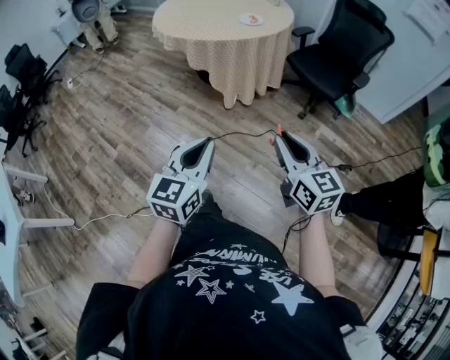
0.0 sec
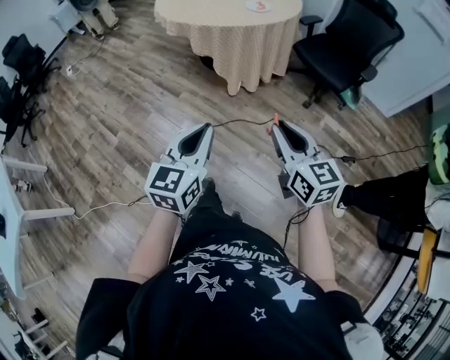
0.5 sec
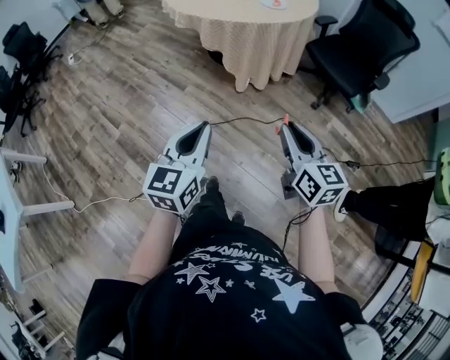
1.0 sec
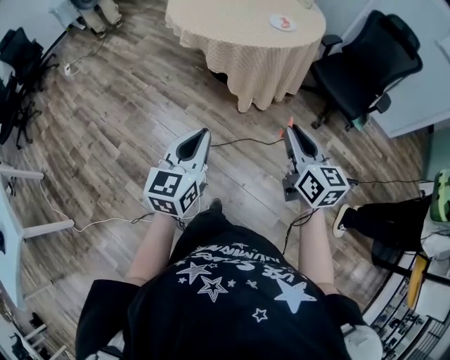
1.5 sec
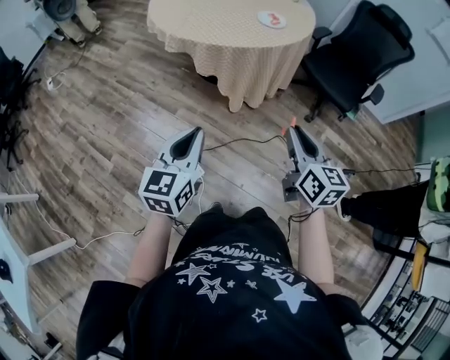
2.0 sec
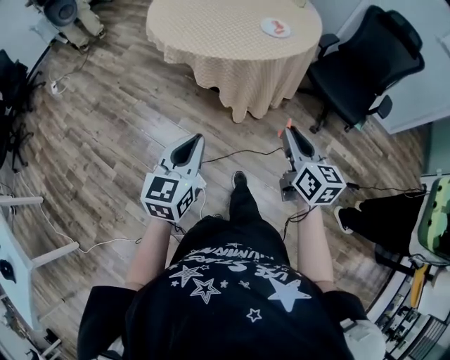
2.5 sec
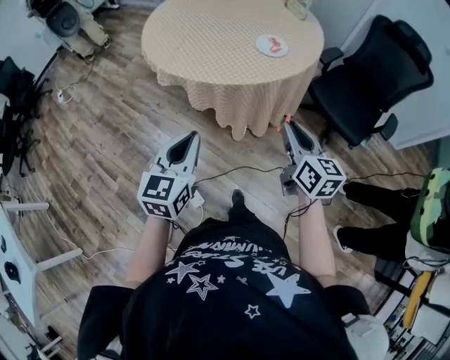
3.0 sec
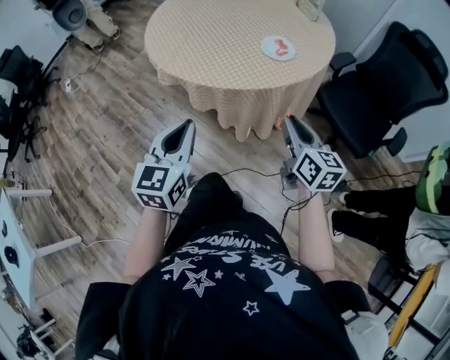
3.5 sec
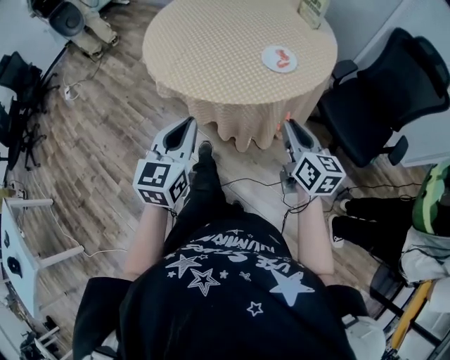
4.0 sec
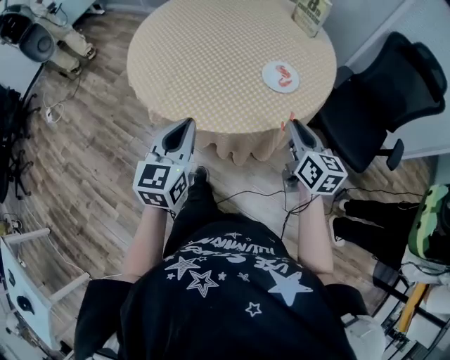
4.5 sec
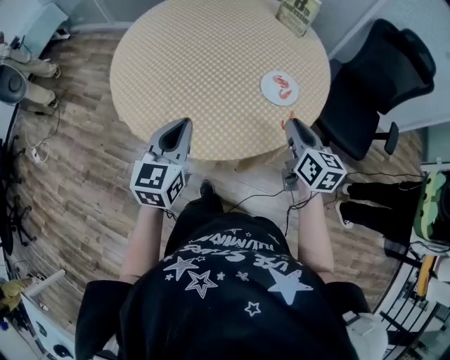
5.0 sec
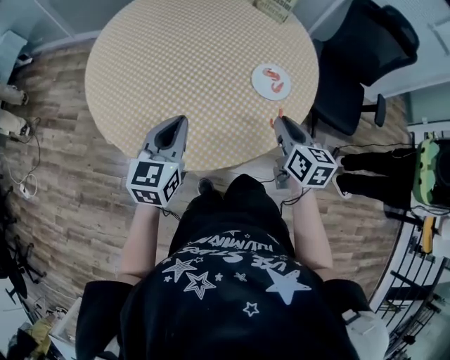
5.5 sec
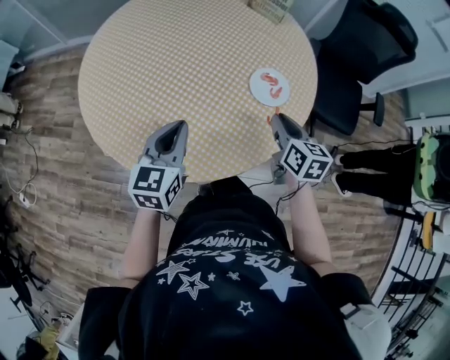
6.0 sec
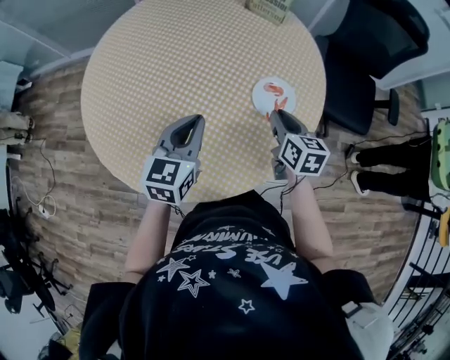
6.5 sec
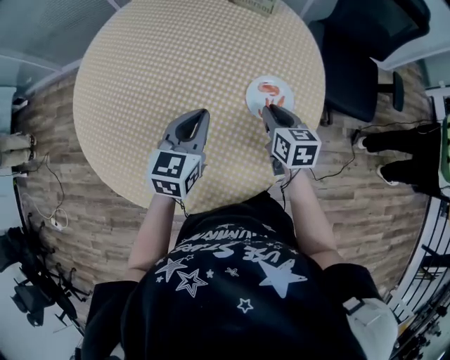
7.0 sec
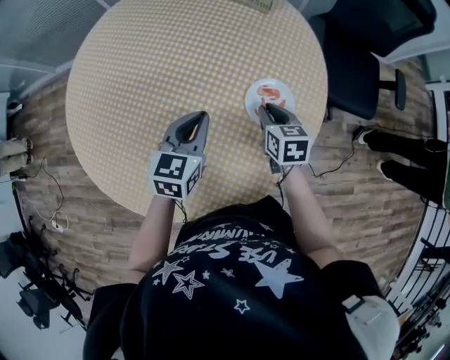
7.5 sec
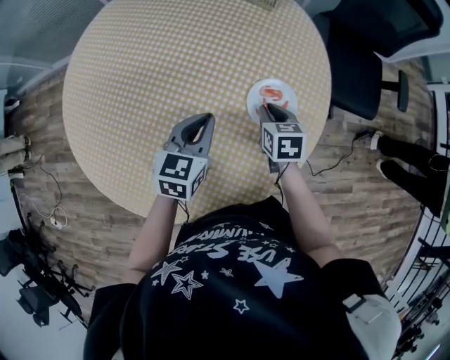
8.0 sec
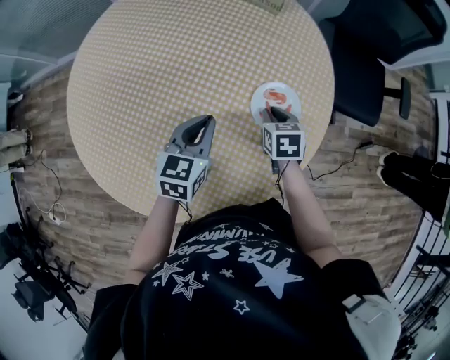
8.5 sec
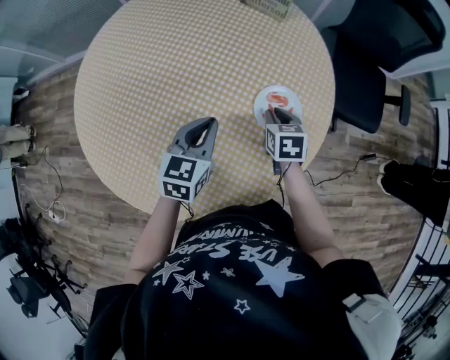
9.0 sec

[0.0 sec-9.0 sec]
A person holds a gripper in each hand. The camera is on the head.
0.0 sec to 2.0 sec: The grippers both shift forward and to the left by roughly 25 cm.
2.0 sec to 4.5 sec: The pair of grippers is taken forward, some 40 cm.
4.5 sec to 7.0 sec: The left gripper moves about 35 cm, and swivels approximately 40 degrees. Meanwhile the right gripper shifts by about 25 cm, and changes its angle by about 30 degrees.
7.0 sec to 9.0 sec: The right gripper shifts by roughly 5 cm.

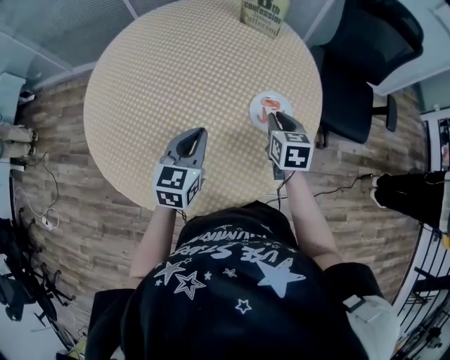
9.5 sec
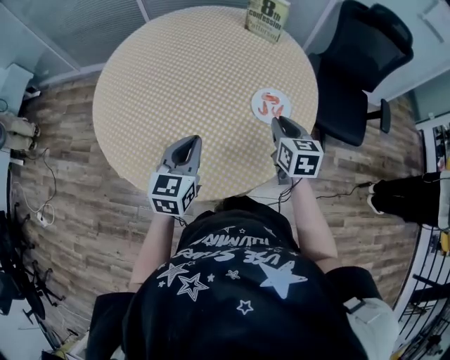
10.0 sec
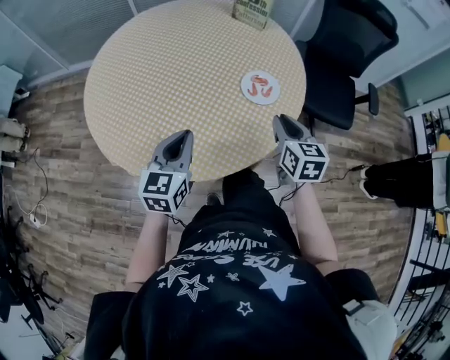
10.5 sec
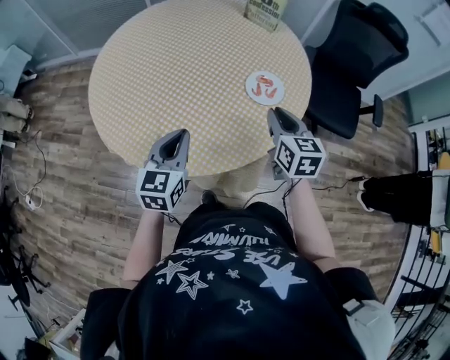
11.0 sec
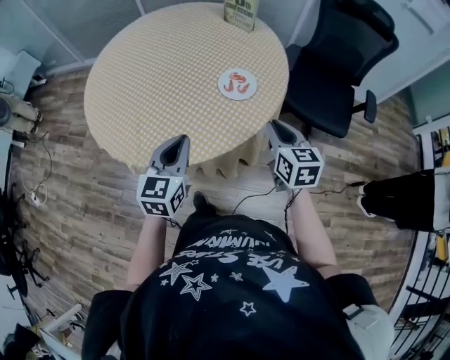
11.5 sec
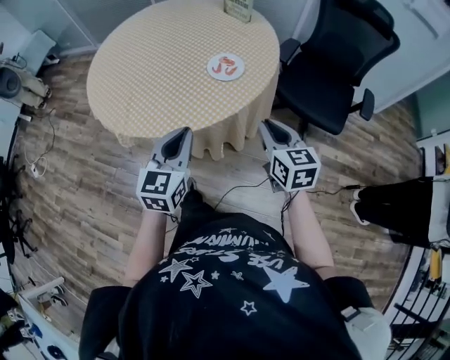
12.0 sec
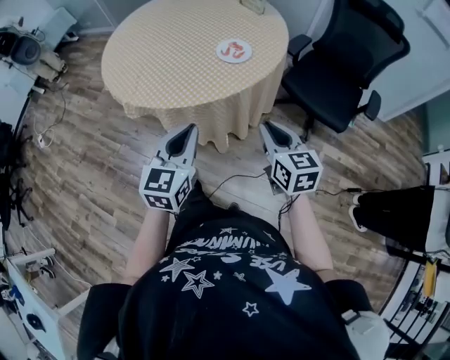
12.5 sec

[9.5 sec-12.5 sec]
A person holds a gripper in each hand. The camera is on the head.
9.5 sec to 11.0 sec: The left gripper heads backward, covering approximately 15 cm; the right gripper goes some 15 cm backward and upward.
11.0 sec to 12.5 sec: Both grippers travel together backward and to the right, about 30 cm. The right gripper swivels roughly 20 degrees.

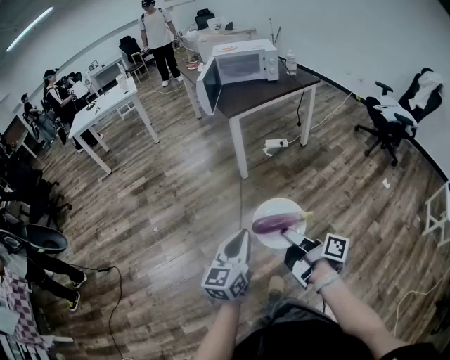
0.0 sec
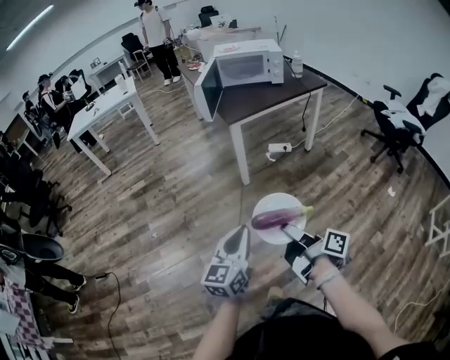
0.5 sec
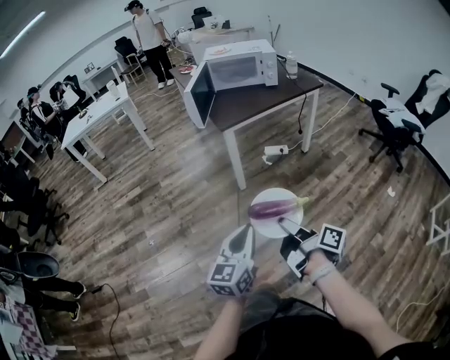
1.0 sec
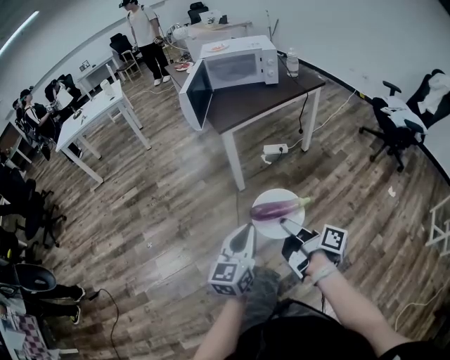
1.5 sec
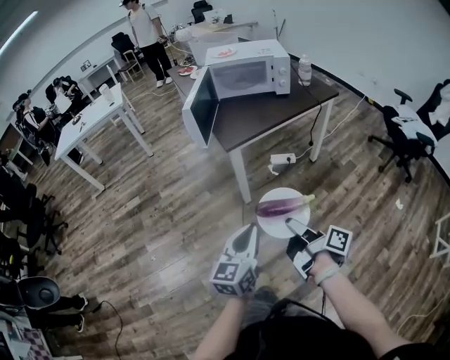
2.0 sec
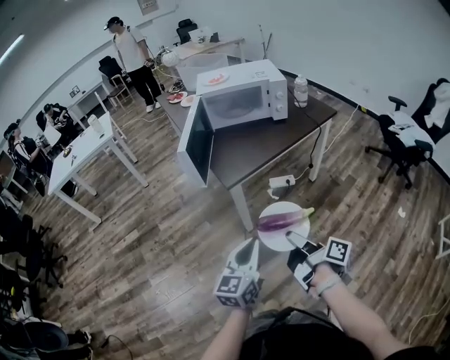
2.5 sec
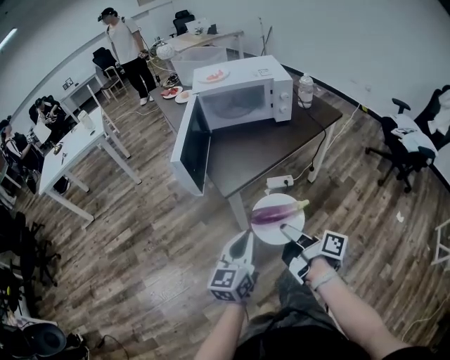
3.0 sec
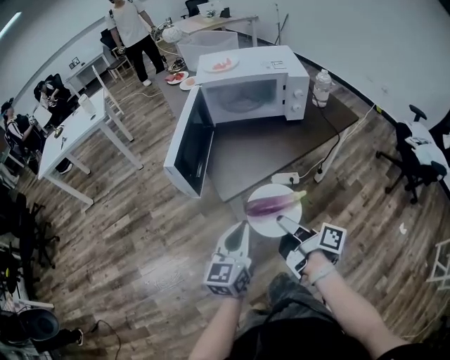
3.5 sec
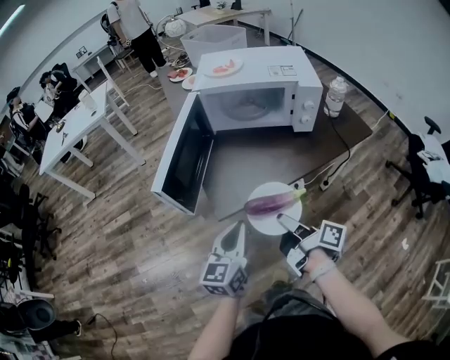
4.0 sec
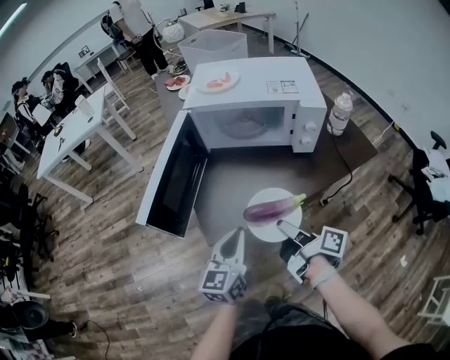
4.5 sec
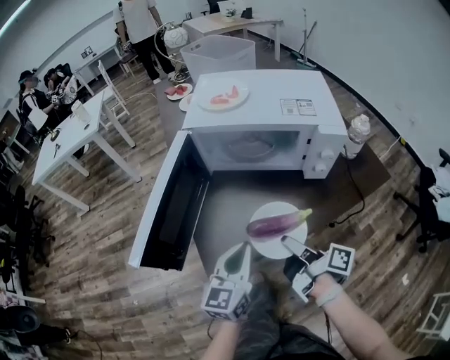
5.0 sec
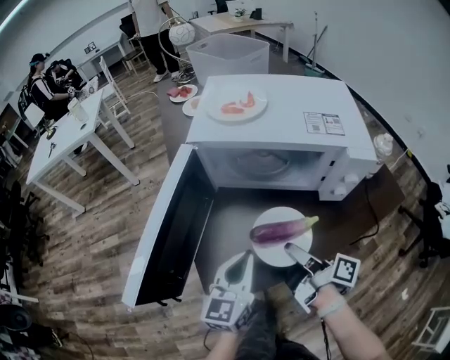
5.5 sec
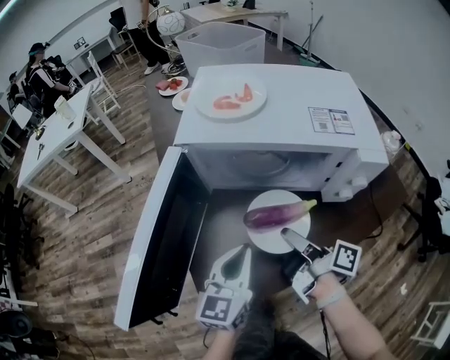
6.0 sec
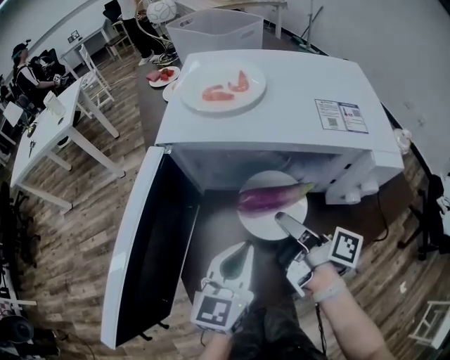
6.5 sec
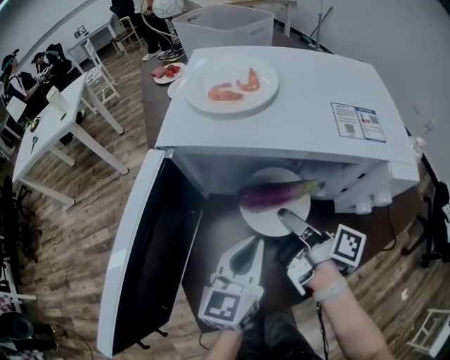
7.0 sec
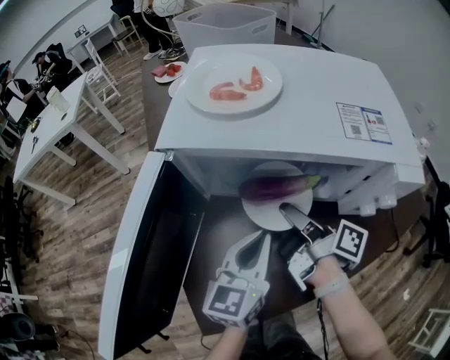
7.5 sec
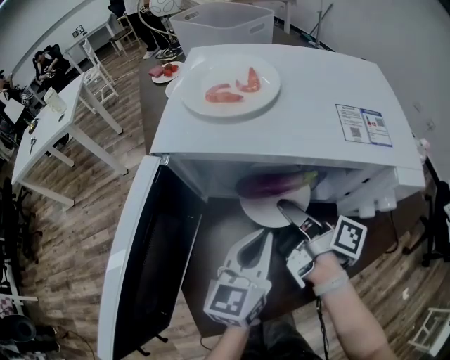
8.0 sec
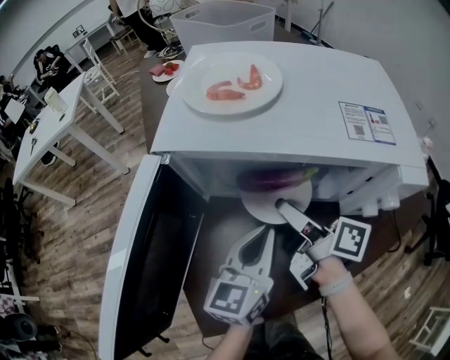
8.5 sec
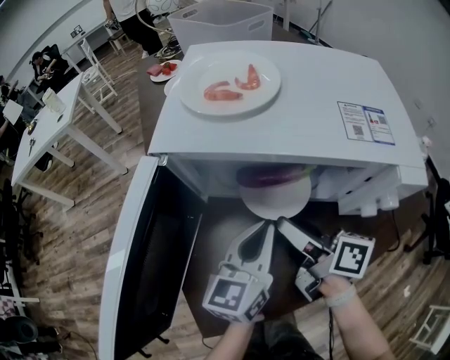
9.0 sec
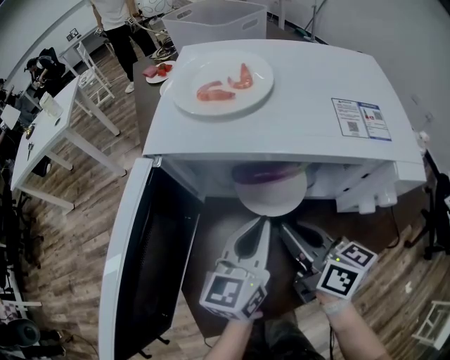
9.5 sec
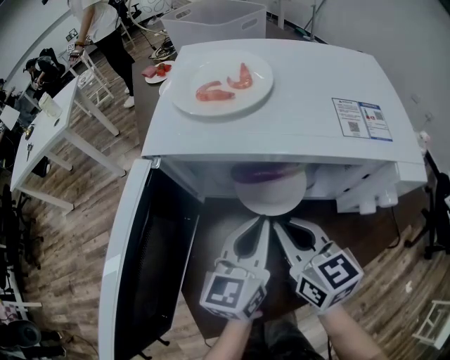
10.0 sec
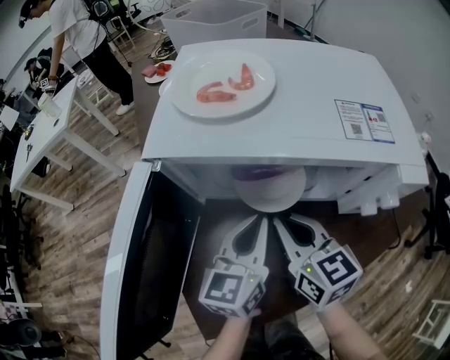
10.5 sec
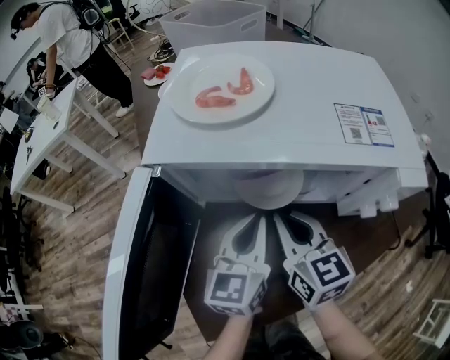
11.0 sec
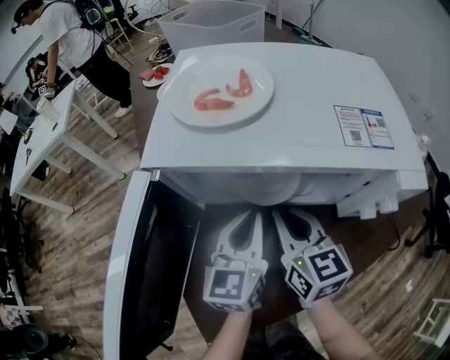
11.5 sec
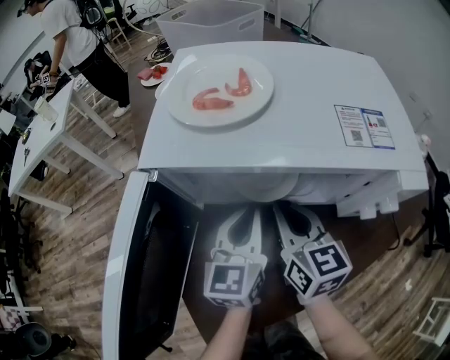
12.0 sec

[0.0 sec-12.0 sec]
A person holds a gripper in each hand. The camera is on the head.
0.0 sec to 2.0 sec: Both grippers move forward, roughly 35 cm.
2.0 sec to 4.0 sec: The grippers both shift forward by approximately 35 cm.
4.0 sec to 6.0 sec: The two grippers go some 25 cm forward.
6.0 sec to 8.0 sec: The left gripper travels forward and to the right by approximately 10 cm. Meanwhile the right gripper moves forward, approximately 10 cm.
8.0 sec to 10.0 sec: The right gripper twists about 70 degrees counterclockwise, seen from behind, and opens, then closes again.
10.0 sec to 12.0 sec: The right gripper shifts by roughly 5 cm.

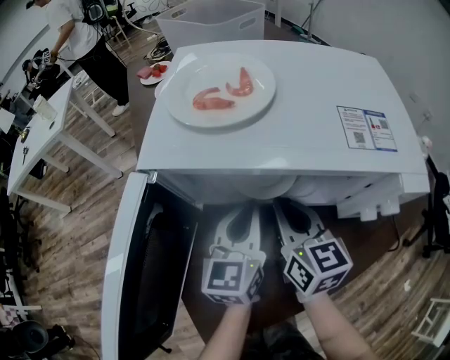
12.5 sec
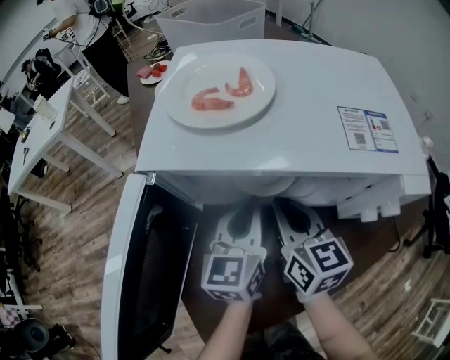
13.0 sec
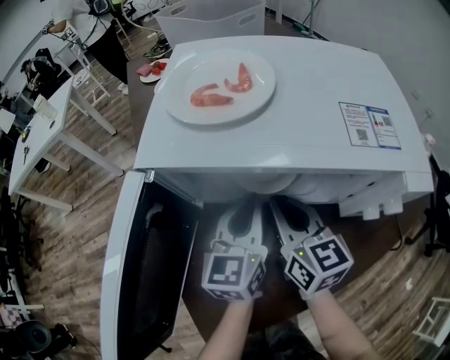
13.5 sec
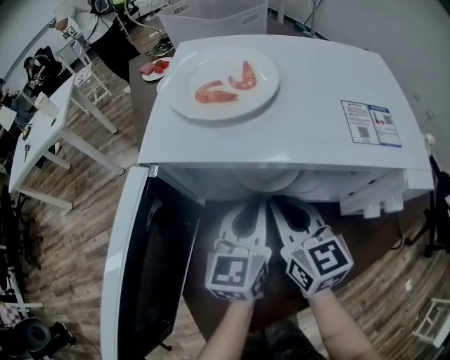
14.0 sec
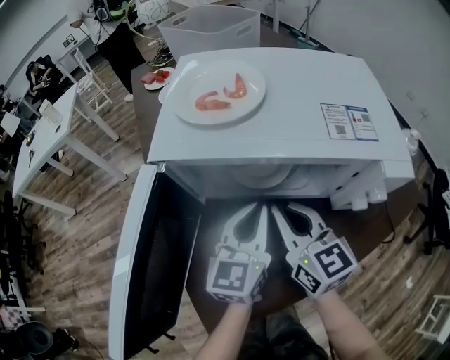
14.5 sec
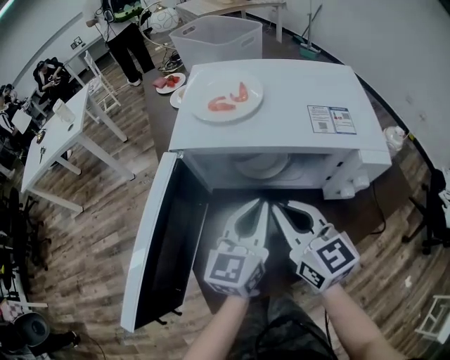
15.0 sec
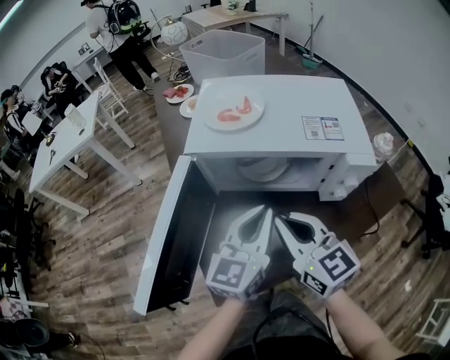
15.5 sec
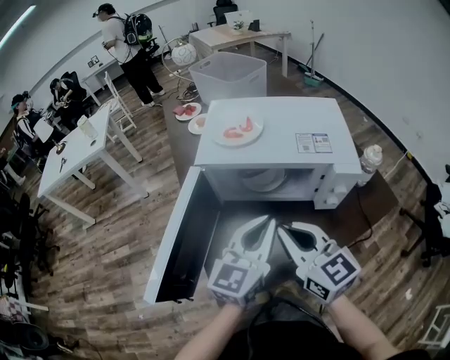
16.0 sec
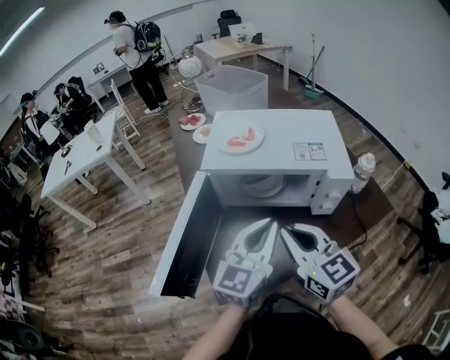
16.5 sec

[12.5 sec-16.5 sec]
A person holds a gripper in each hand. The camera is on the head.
12.5 sec to 14.5 sec: The right gripper shifts by roughly 5 cm.
14.5 sec to 16.5 sec: The grippers both shift upward and backward by some 20 cm.
